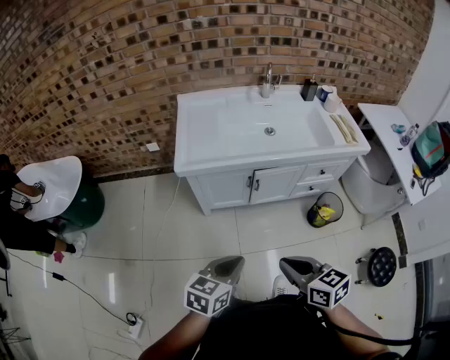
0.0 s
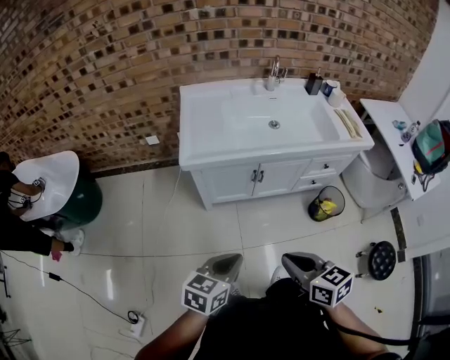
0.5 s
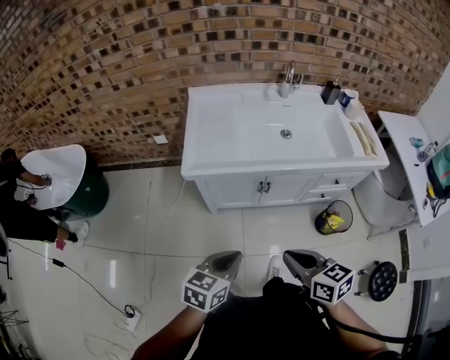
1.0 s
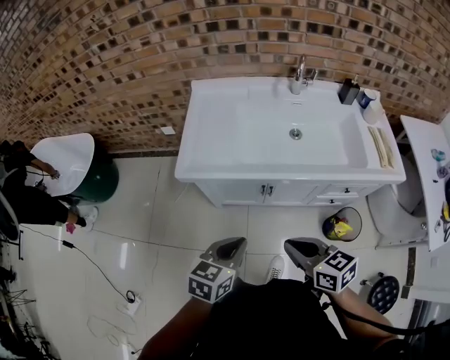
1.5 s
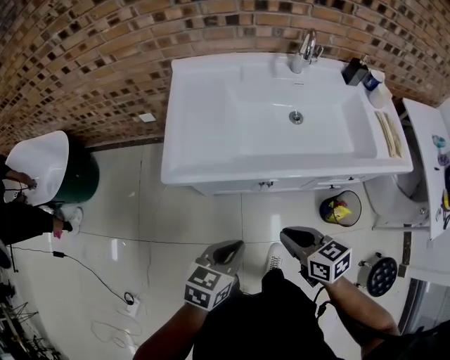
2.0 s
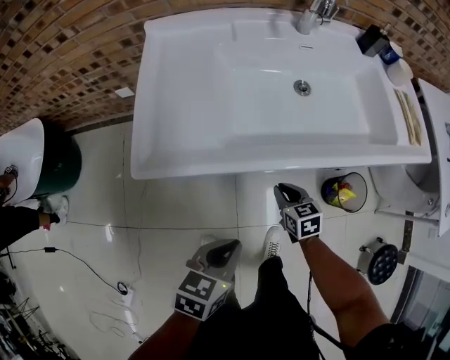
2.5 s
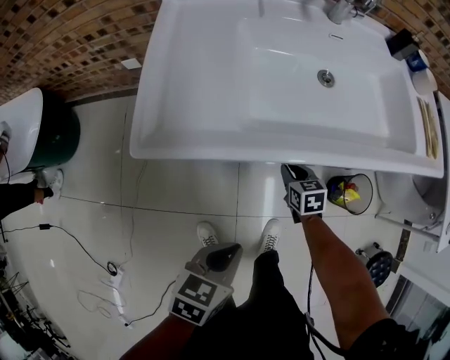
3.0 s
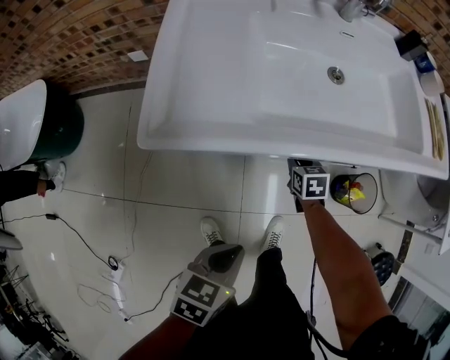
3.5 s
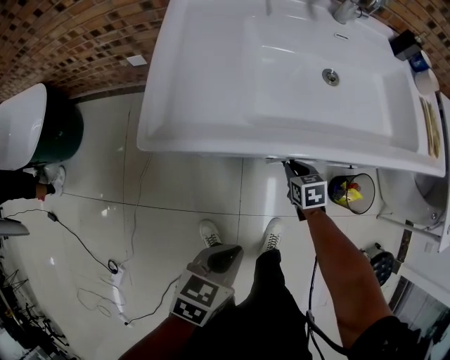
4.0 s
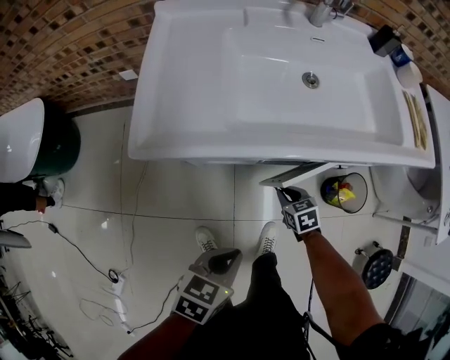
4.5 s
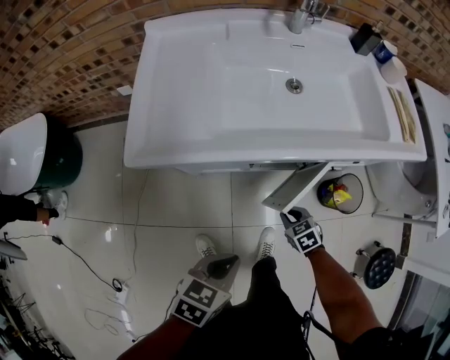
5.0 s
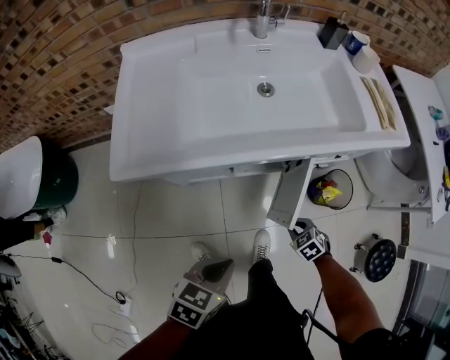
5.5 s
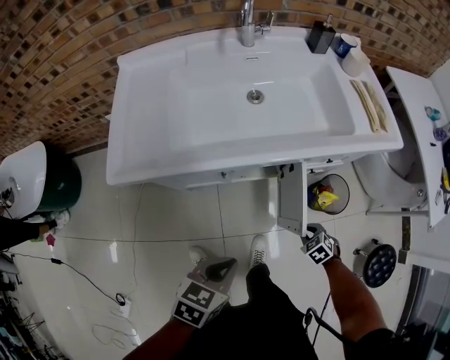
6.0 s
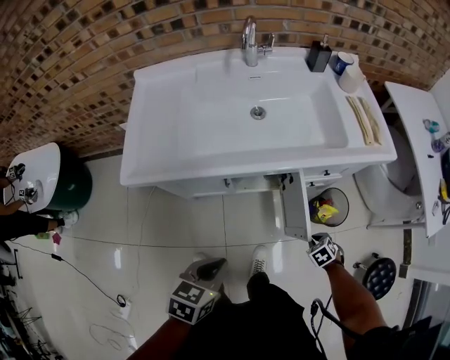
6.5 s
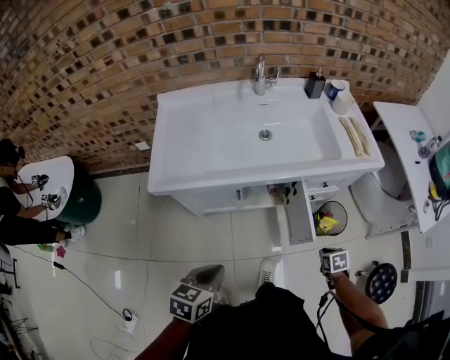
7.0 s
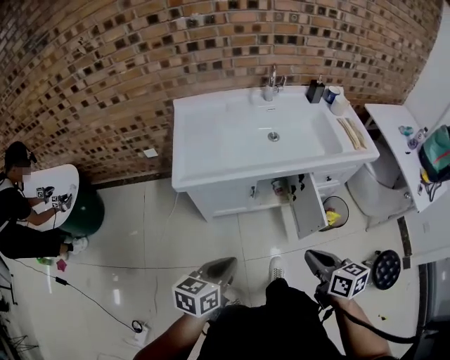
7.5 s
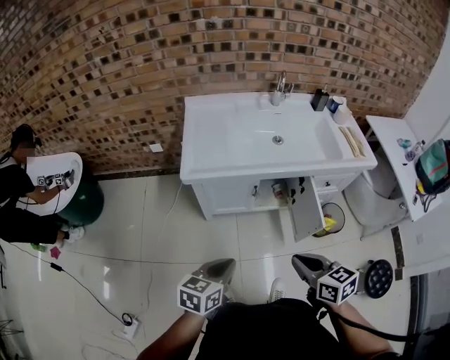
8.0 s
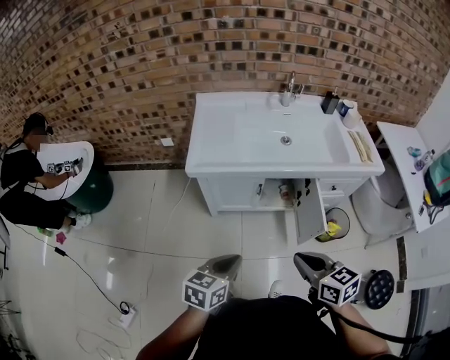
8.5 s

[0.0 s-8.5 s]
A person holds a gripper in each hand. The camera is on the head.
0.0 to 2.0 s: The left gripper is displaced forward by some 20 cm, while the right gripper is displaced forward and downward by some 30 cm.
2.0 to 4.0 s: The left gripper heads downward, covering about 10 cm. The right gripper shifts roughly 35 cm downward and forward, and rotates roughly 30 degrees.
4.0 to 6.5 s: The right gripper shifts by approximately 35 cm, and changes its angle by approximately 30 degrees. Meanwhile the left gripper moves about 15 cm.
6.5 to 8.5 s: The right gripper travels upward by some 40 cm, and tips its fingers upward by approximately 50 degrees. Meanwhile the left gripper changes place by approximately 20 cm.

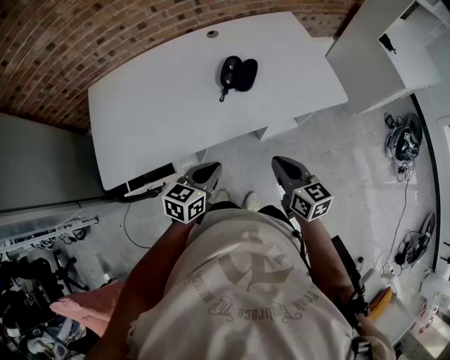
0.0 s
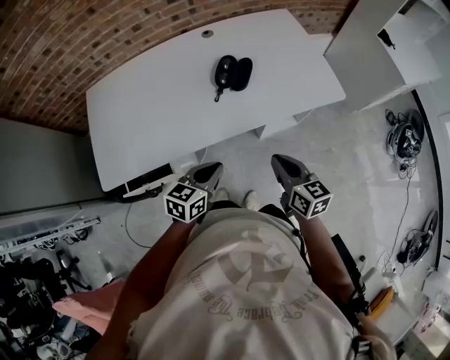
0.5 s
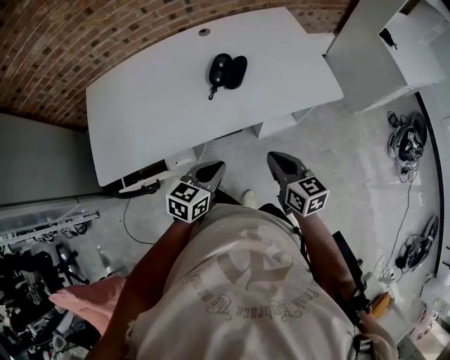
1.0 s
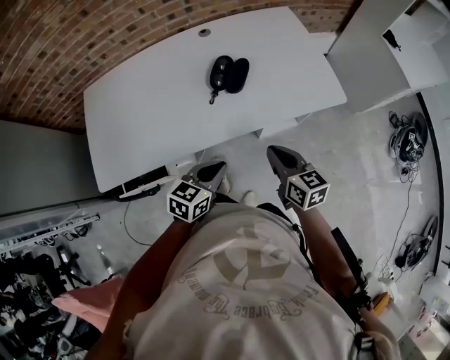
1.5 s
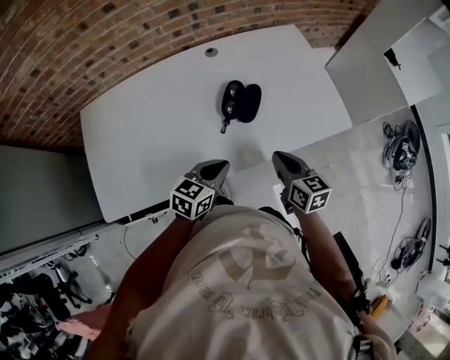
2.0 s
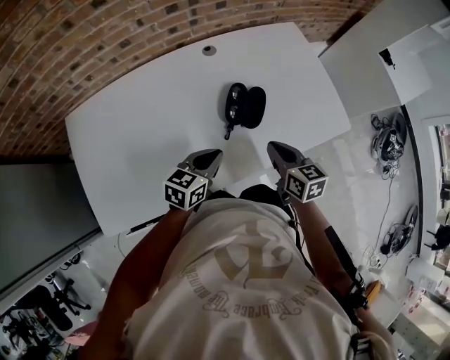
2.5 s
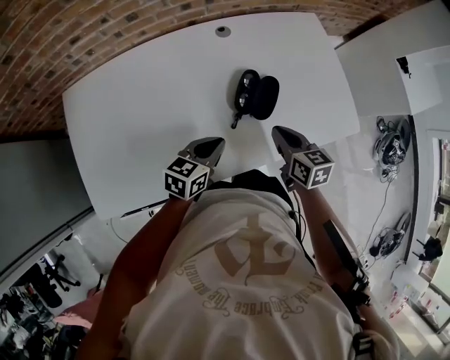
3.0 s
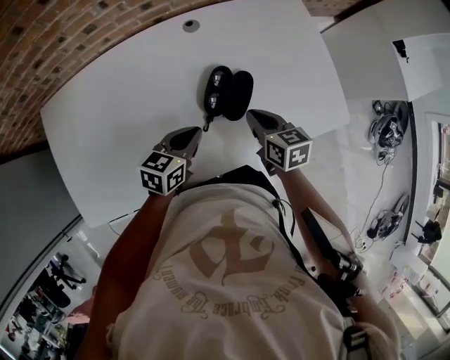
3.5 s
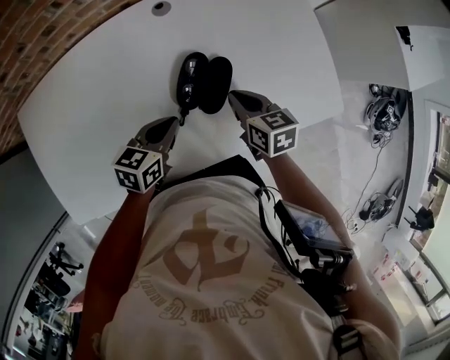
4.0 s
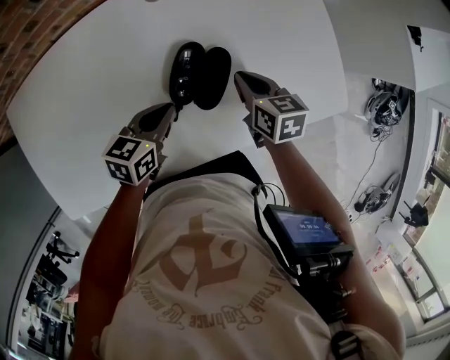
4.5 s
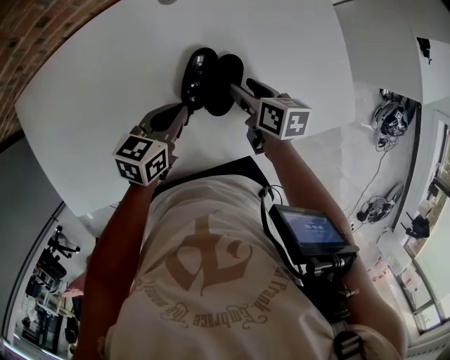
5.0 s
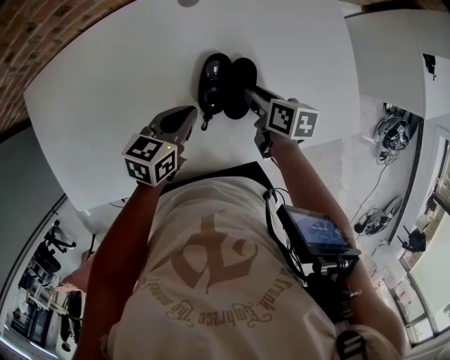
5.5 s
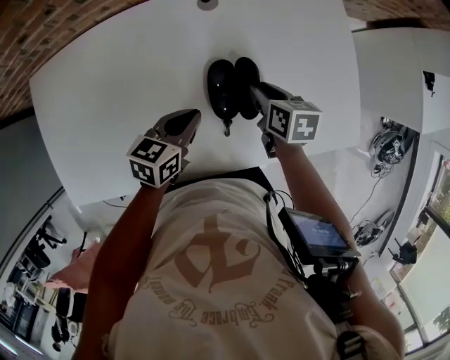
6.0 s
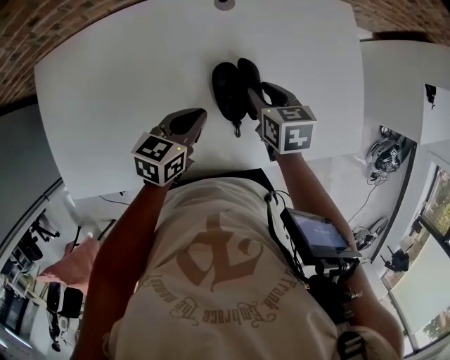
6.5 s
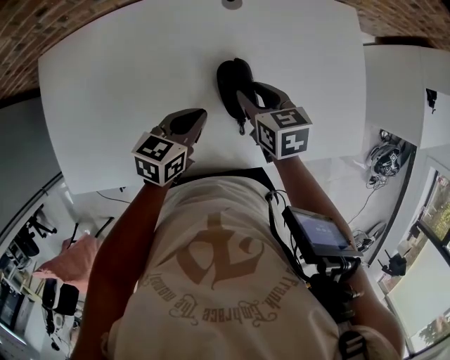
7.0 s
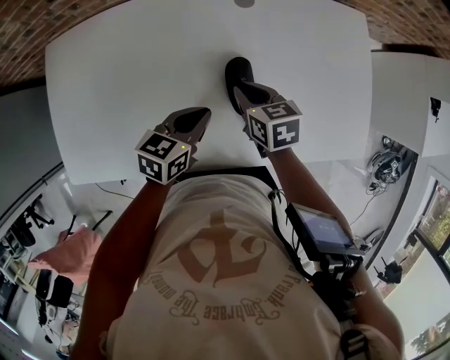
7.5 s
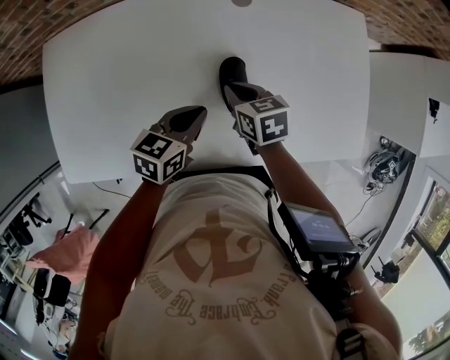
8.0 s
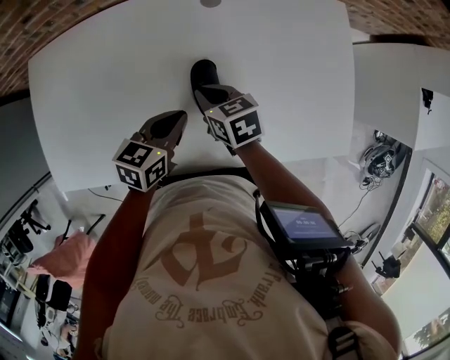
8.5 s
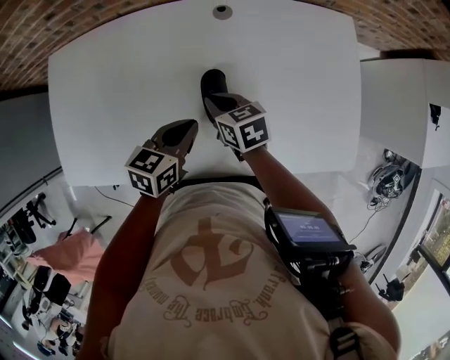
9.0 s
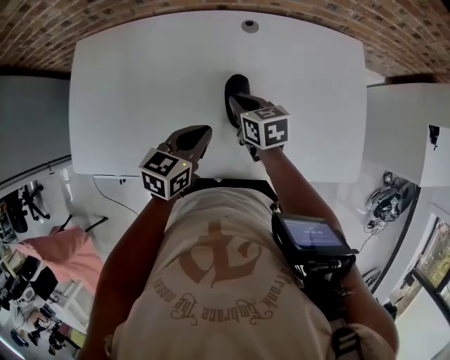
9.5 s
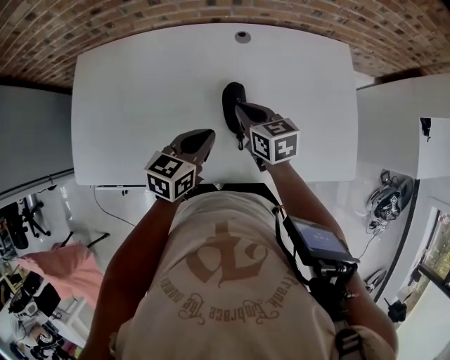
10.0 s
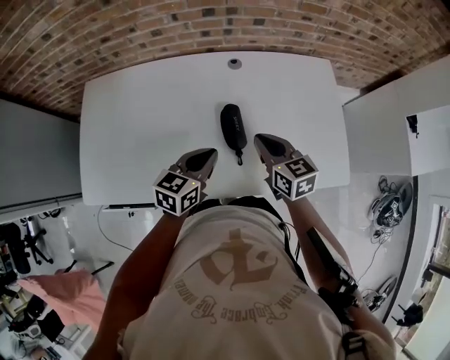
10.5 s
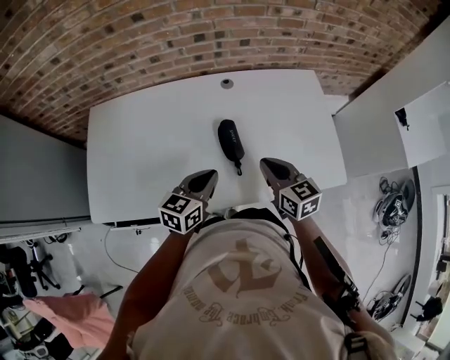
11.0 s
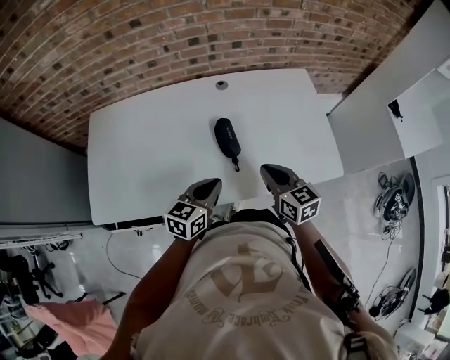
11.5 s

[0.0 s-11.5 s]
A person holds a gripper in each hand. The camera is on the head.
0.0 to 2.0 s: Both grippers travel together forward, some 15 cm.
2.0 to 4.0 s: The two grippers go roughly 20 cm forward and downward.
4.0 to 6.0 s: The right gripper is displaced forward by some 5 cm, and opens.
6.0 to 7.5 s: The right gripper heads to the left, covering some 10 cm, and changes its angle by about 20 degrees.
7.5 to 9.5 s: The left gripper ends up some 5 cm from where it was.
9.5 to 11.5 s: The left gripper moves backward, about 10 cm. The right gripper heads backward, upward and to the right, covering about 25 cm, and changes its angle by approximately 20 degrees.

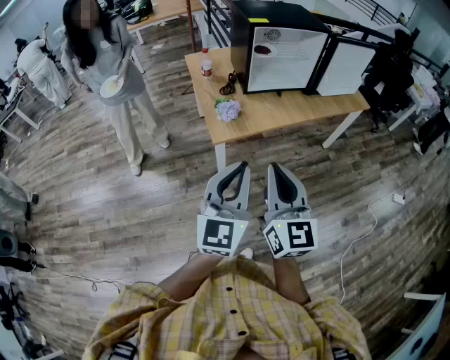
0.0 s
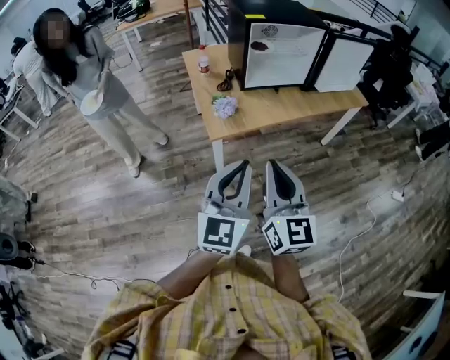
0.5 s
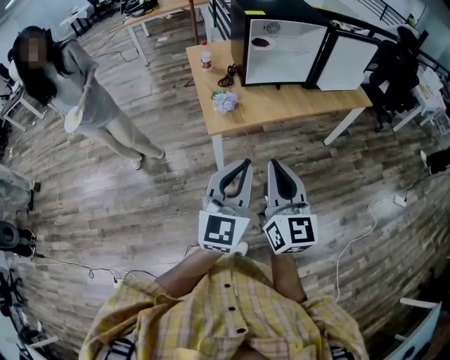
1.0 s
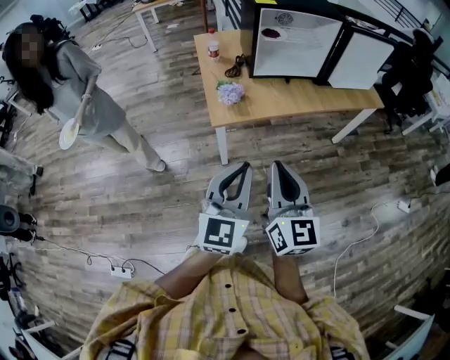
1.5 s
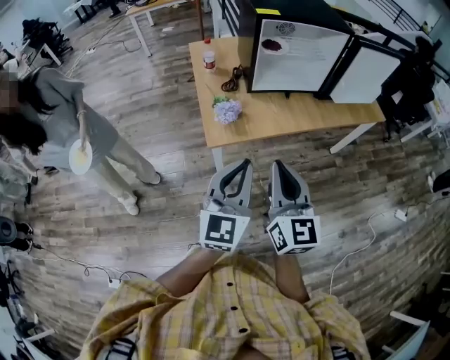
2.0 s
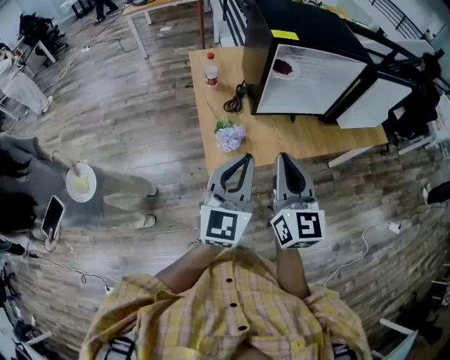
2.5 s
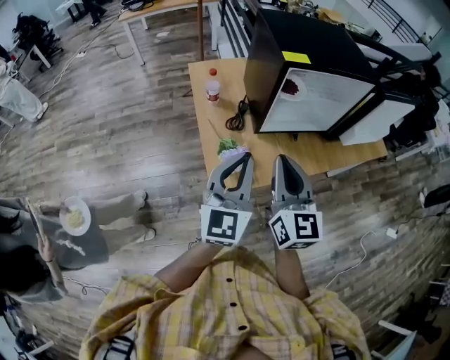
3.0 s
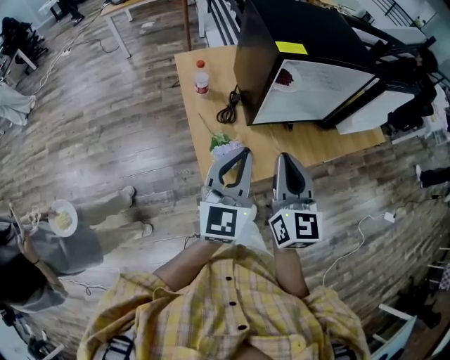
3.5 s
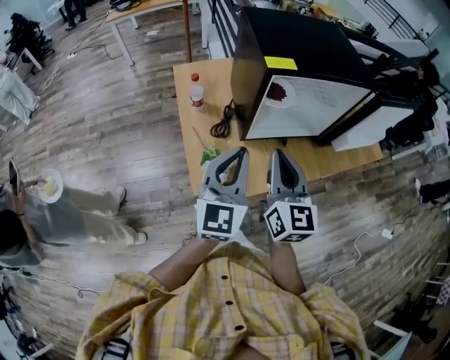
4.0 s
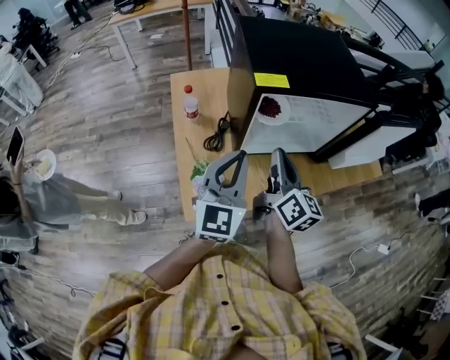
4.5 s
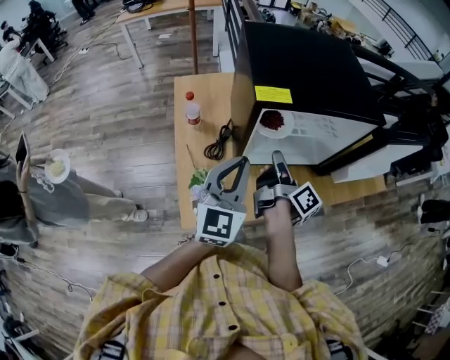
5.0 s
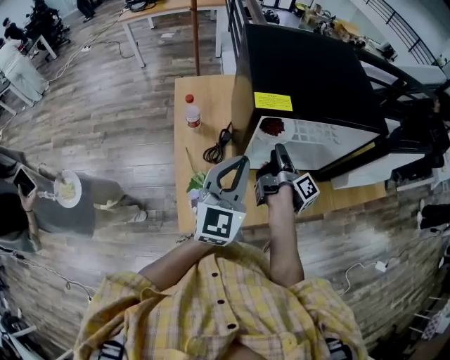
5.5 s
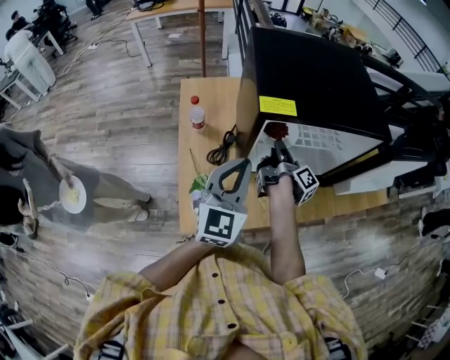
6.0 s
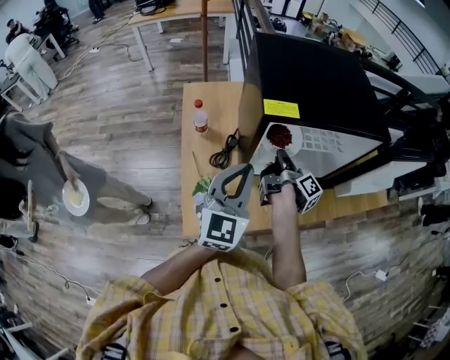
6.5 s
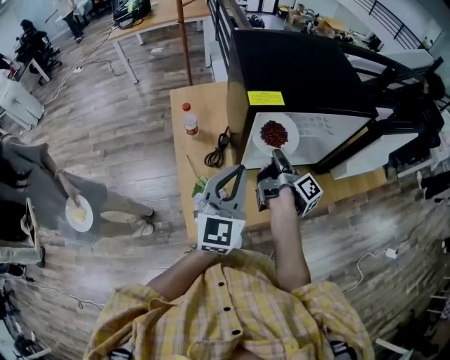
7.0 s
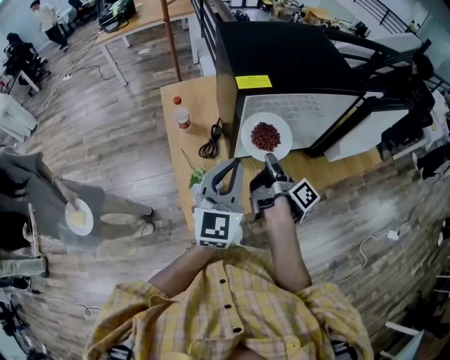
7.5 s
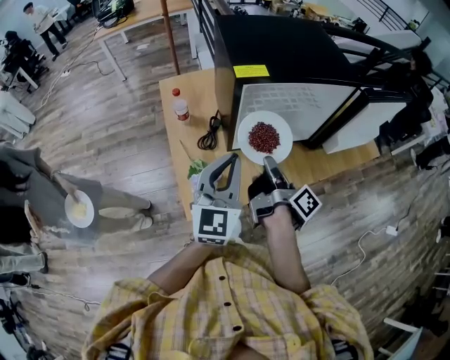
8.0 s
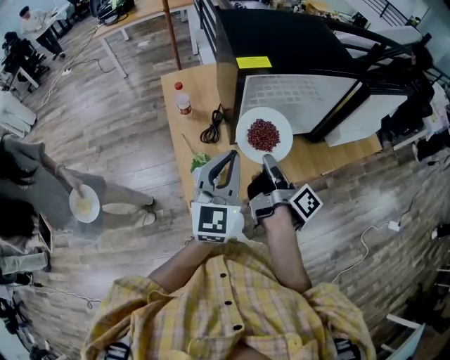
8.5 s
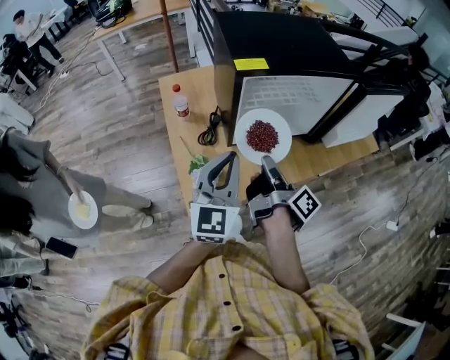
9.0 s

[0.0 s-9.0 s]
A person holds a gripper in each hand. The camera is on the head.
0.0 to 2.0 s: The grippers both shift forward and downward by approximately 10 cm.
2.0 to 4.5 s: Both grippers travel together forward, about 35 cm. The right gripper changes its angle by roughly 30 degrees.
4.5 to 7.0 s: The right gripper moves downward and forward, about 10 cm, twists some 60 degrees clockwise, seen from behind, and opens, then closes once more.
7.0 to 9.0 s: The right gripper travels backward by some 15 cm, while the left gripper shifts roughly 5 cm backward.
